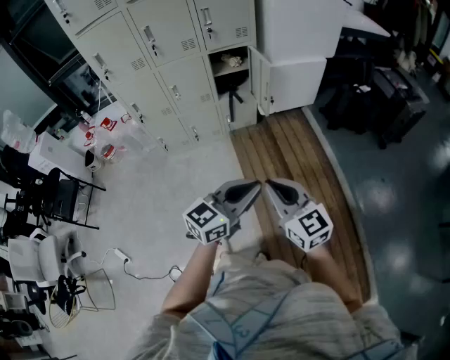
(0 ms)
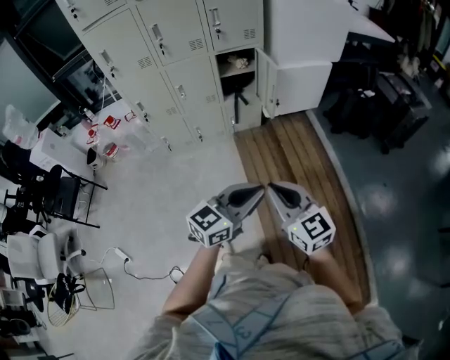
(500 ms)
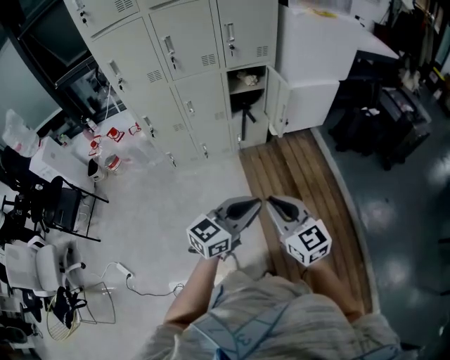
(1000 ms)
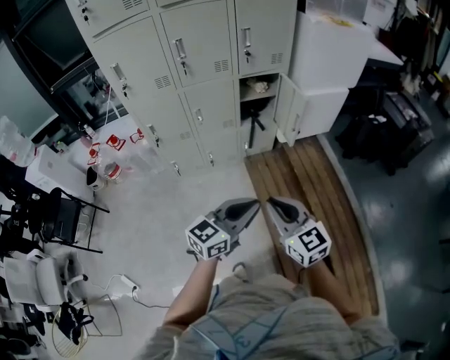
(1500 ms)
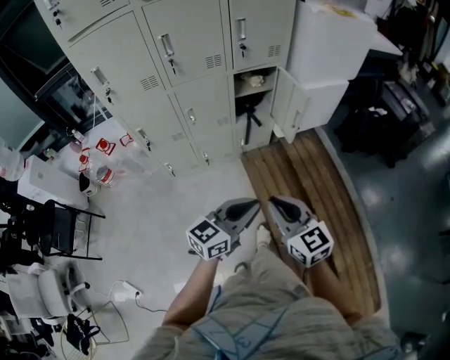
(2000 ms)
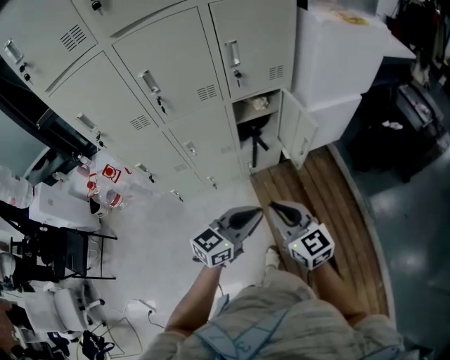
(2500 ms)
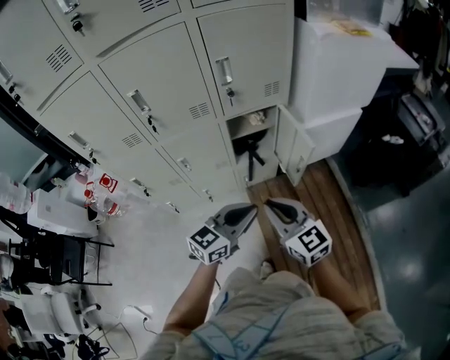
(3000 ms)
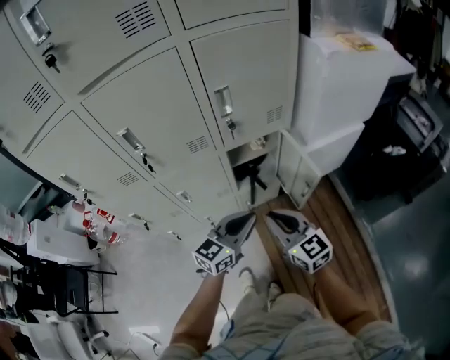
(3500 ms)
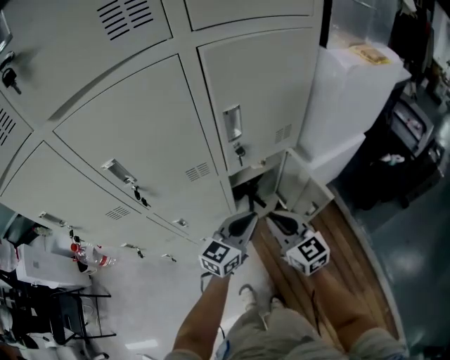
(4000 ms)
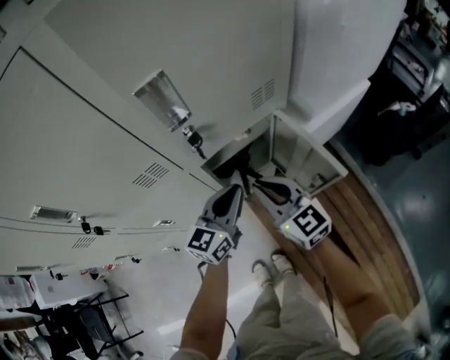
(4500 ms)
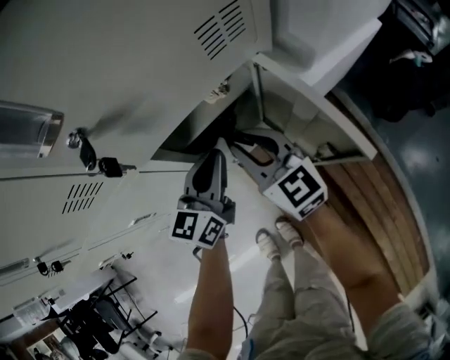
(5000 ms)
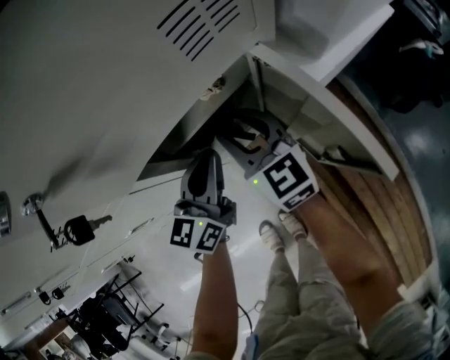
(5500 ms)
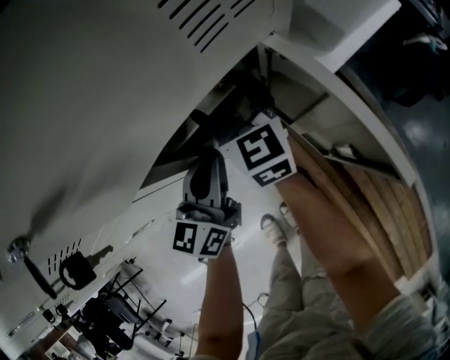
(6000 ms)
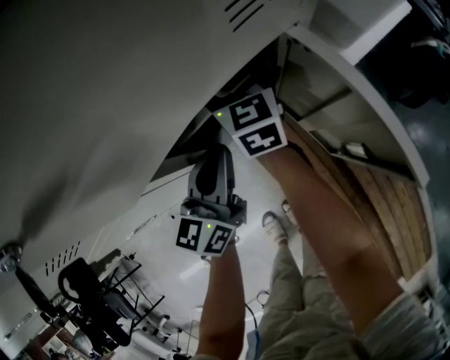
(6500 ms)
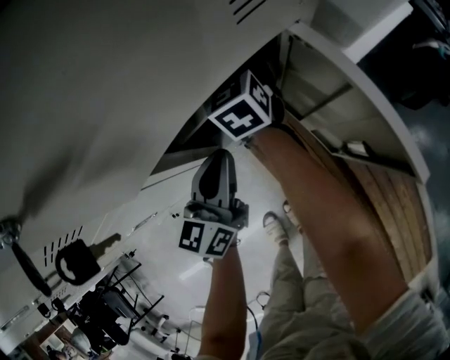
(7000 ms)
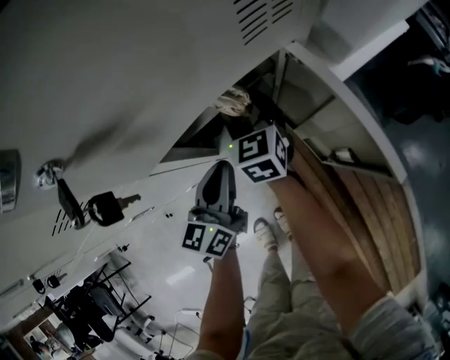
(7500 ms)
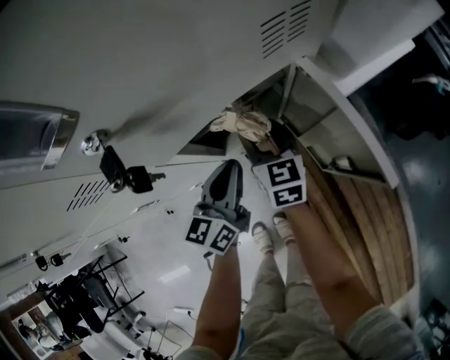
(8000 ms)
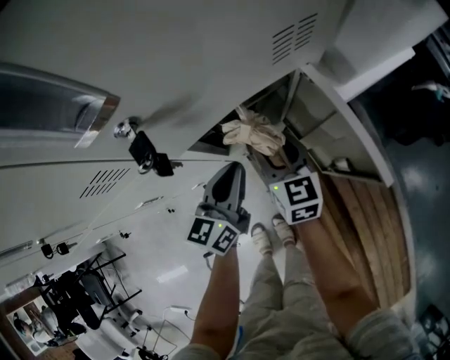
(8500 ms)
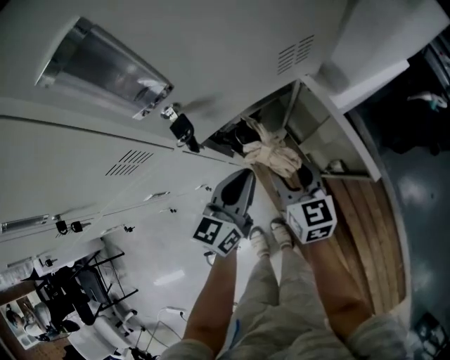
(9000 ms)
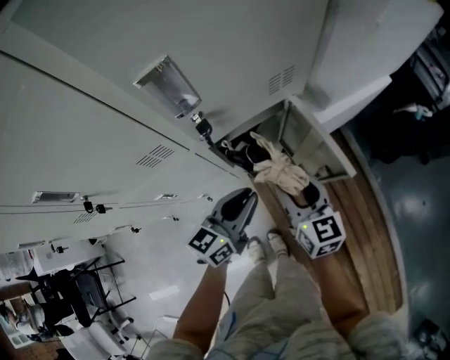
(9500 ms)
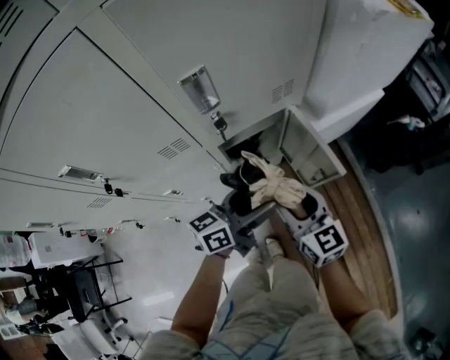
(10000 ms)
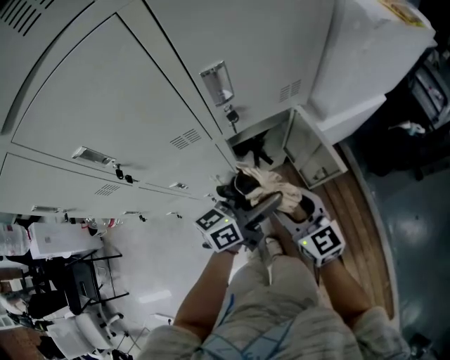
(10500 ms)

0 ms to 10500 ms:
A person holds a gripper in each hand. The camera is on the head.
0 ms to 2000 ms: Both grippers move to the left and forward, about 25 cm.
2000 ms to 4000 ms: The pair of grippers is taken forward, roughly 40 cm.
4000 ms to 6500 ms: The right gripper heads forward and downward, covering approximately 40 cm, swivels roughly 20 degrees, and opens. The left gripper goes approximately 25 cm downward and forward, and changes its angle by roughly 20 degrees.
6500 ms to 8500 ms: The left gripper moves backward, roughly 5 cm, while the right gripper is displaced backward by roughly 15 cm, and closes.
8500 ms to 10500 ms: Both grippers travel together upward and backward, some 25 cm. The right gripper changes its angle by some 20 degrees, while the left gripper changes its angle by approximately 30 degrees, and opens.

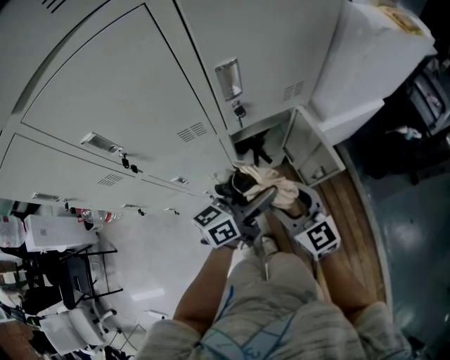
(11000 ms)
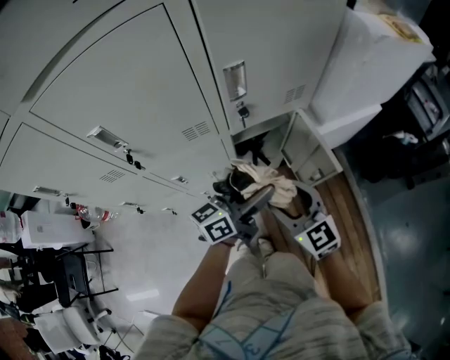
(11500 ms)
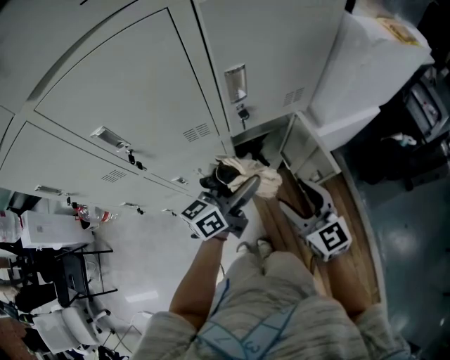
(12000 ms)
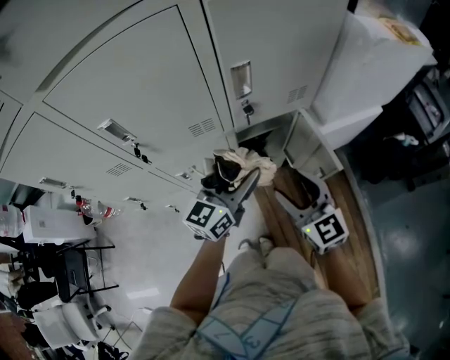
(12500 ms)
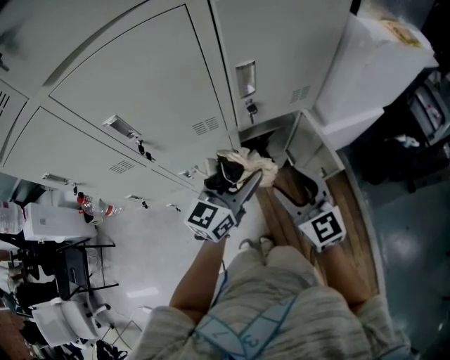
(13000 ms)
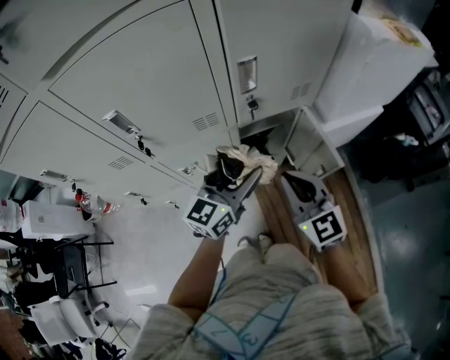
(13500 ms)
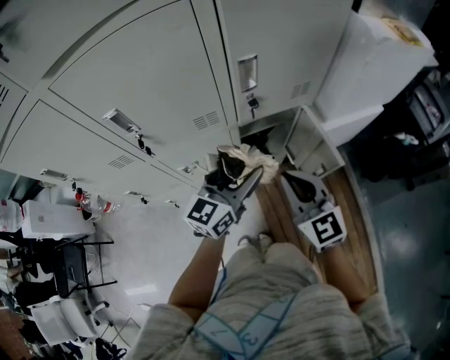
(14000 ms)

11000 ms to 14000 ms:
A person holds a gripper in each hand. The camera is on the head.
11000 ms to 12500 ms: The left gripper moves to the left, approximately 5 cm, and changes its angle by about 30 degrees; the right gripper travels upward by about 5 cm.
12500 ms to 14000 ms: The right gripper closes.

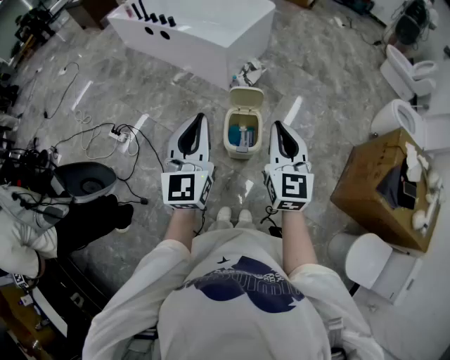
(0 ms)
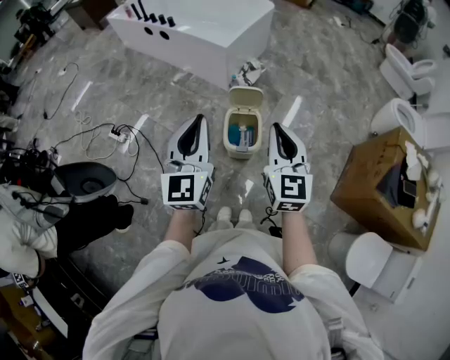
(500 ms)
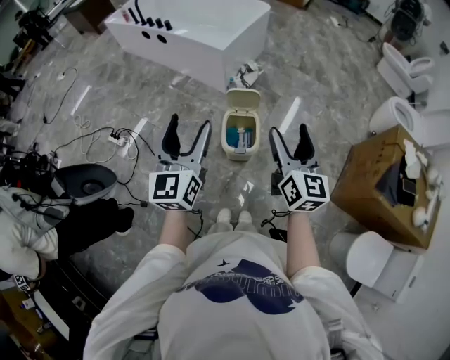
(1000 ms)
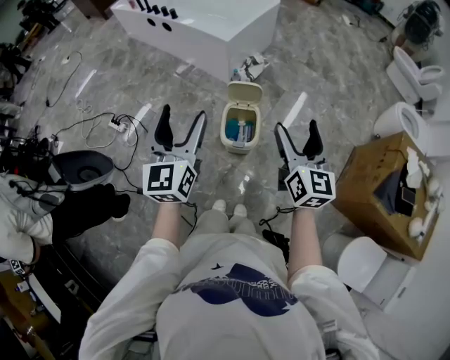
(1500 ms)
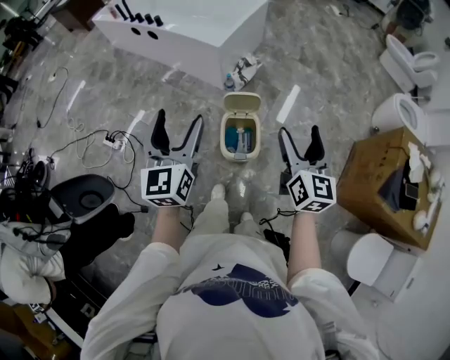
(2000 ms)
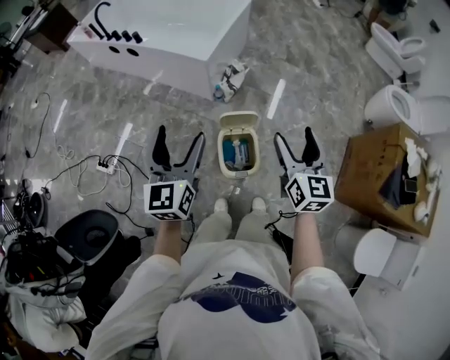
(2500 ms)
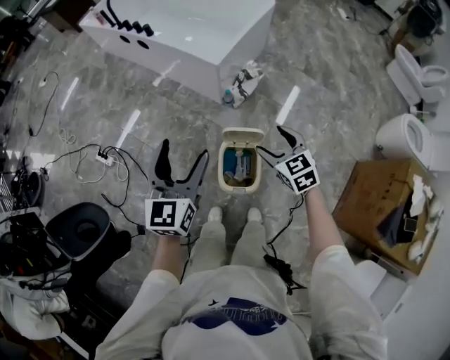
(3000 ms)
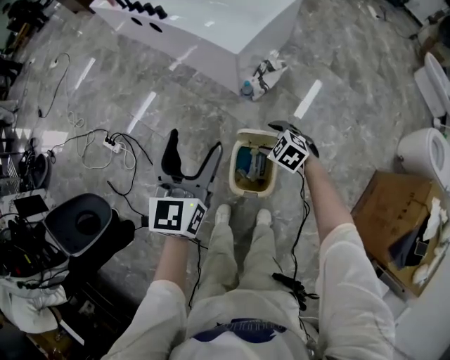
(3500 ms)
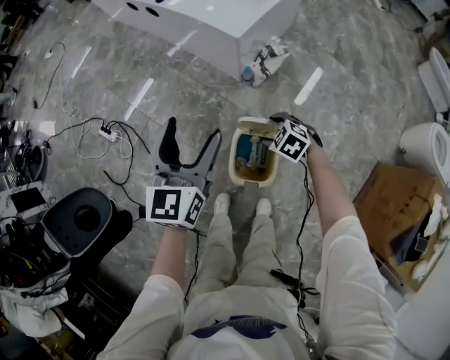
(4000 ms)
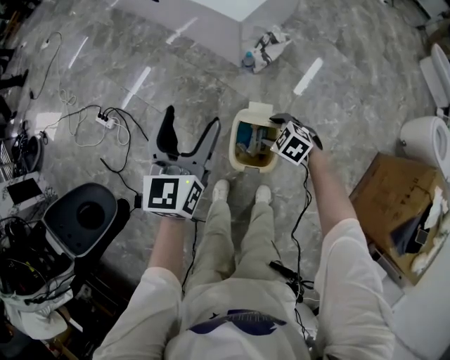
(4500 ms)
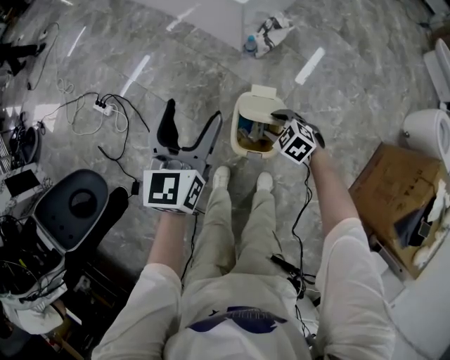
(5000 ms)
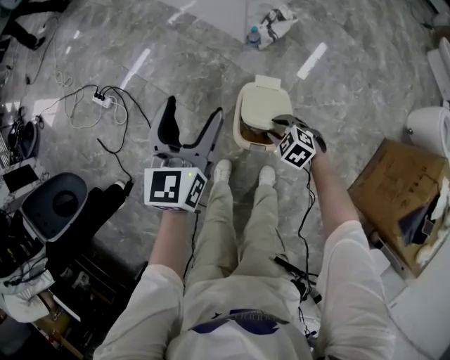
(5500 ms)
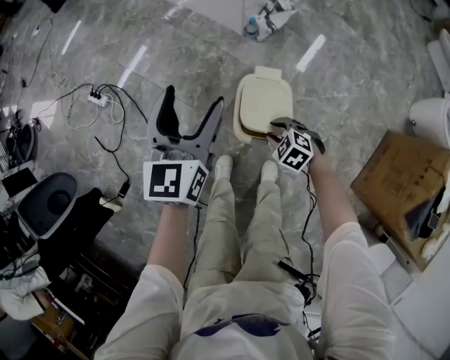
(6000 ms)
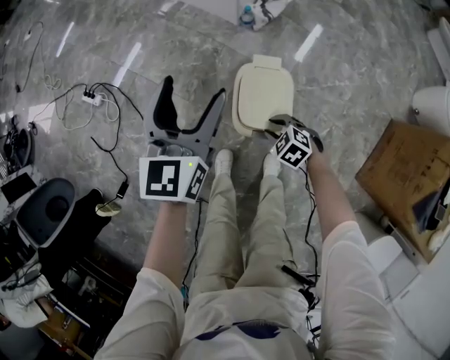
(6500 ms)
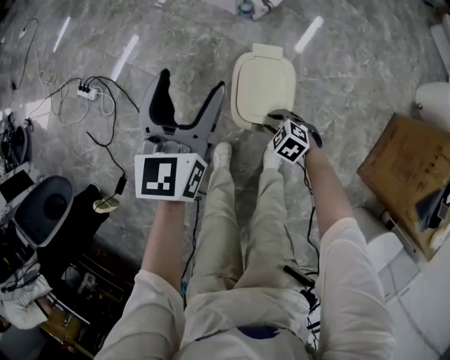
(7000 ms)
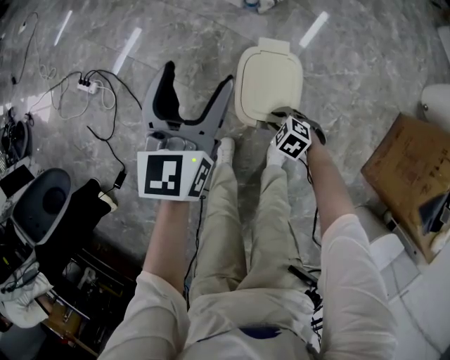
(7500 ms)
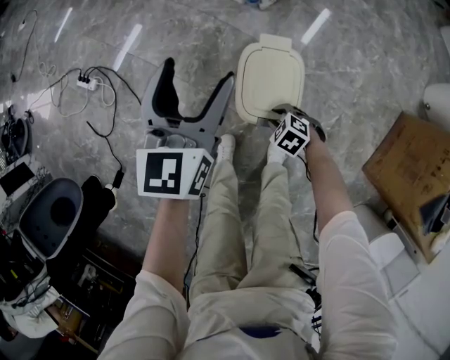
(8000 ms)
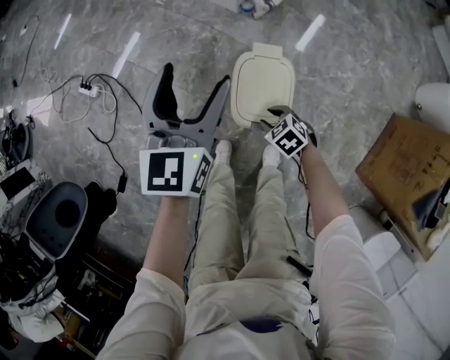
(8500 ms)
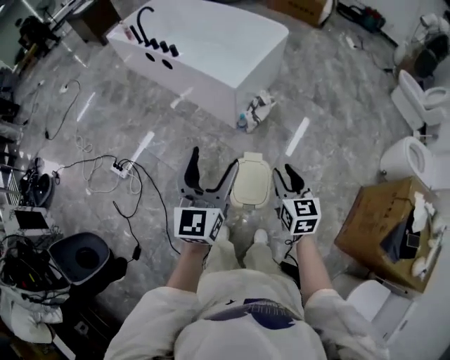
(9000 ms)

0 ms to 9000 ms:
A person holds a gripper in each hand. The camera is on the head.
0 ms to 2000 ms: The right gripper shifts approximately 10 cm forward and to the right, and opens its fingers, while the left gripper moves forward, roughly 10 cm, and opens its fingers.
2000 ms to 4500 ms: The right gripper moves downward, approximately 40 cm, and points its fingers some 60 degrees further downward; the left gripper changes place by approximately 25 cm.
4500 ms to 7000 ms: The left gripper moves downward and backward, approximately 15 cm, while the right gripper is displaced downward, backward and to the left by approximately 20 cm, and closes its fingers.
7000 ms to 9000 ms: The left gripper shifts some 25 cm upward, while the right gripper travels upward by some 50 cm, and points its fingers roughly 40 degrees further upward.

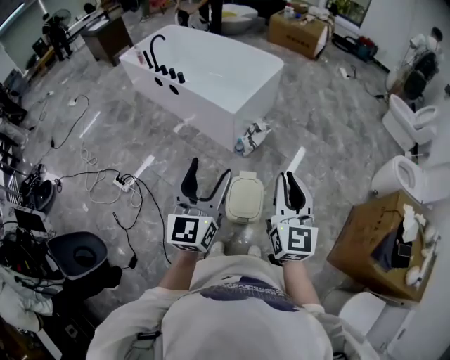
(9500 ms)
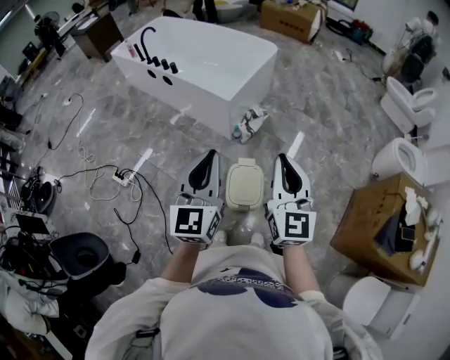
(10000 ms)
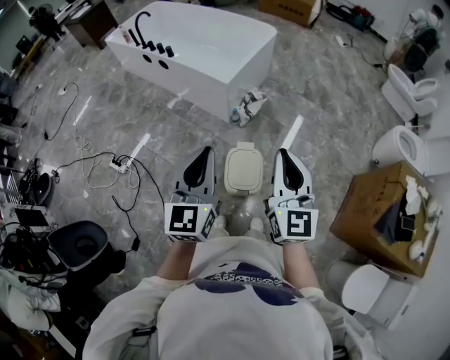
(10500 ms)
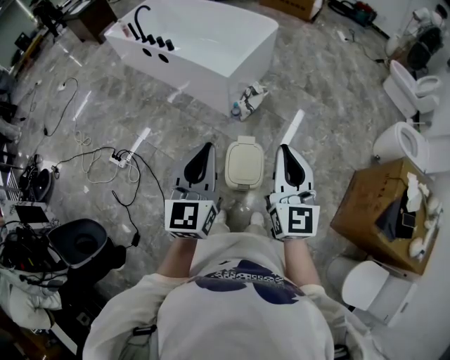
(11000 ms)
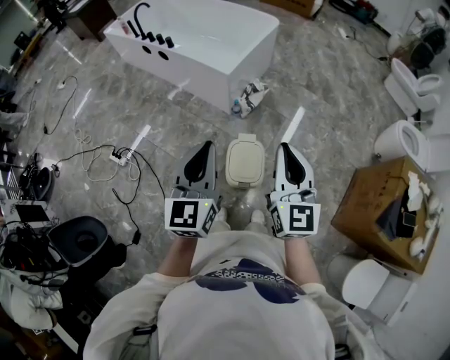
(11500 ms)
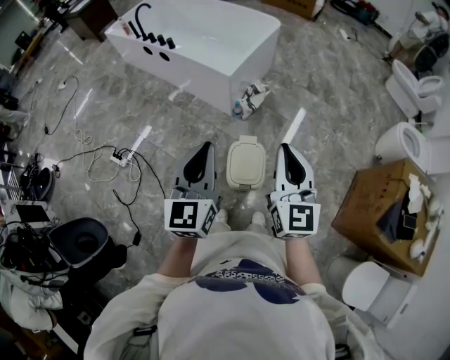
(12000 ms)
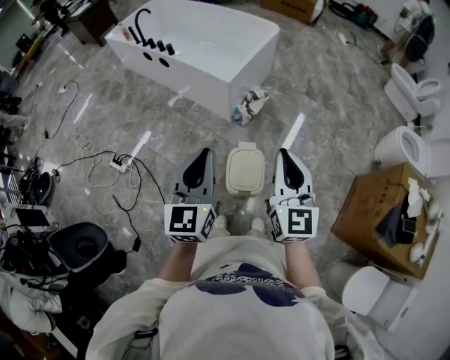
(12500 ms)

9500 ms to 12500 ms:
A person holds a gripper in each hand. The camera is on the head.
9500 ms to 11000 ms: The left gripper closes.
11000 ms to 12500 ms: The grippers move only a little.

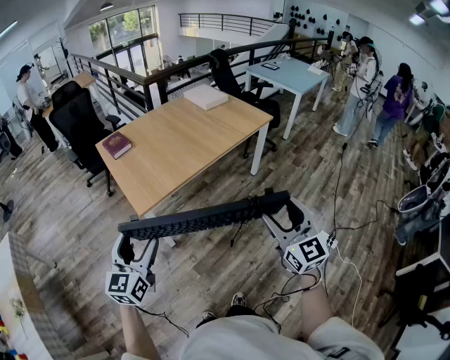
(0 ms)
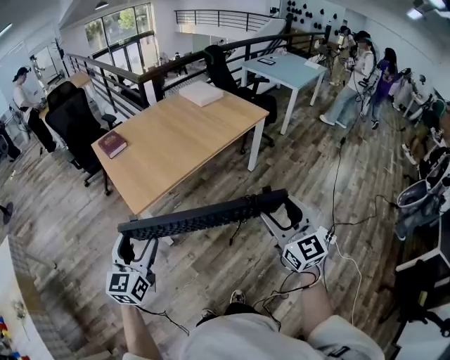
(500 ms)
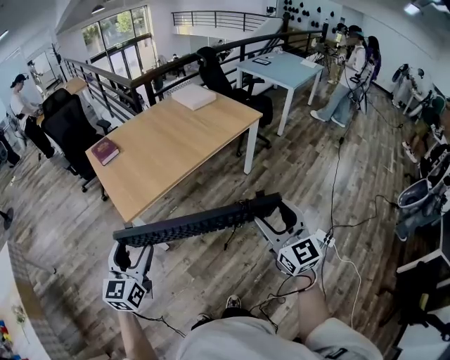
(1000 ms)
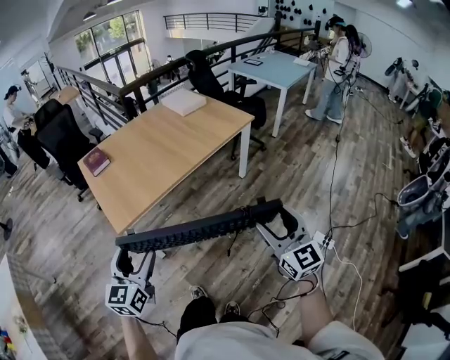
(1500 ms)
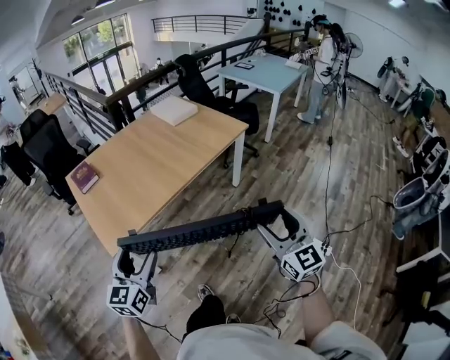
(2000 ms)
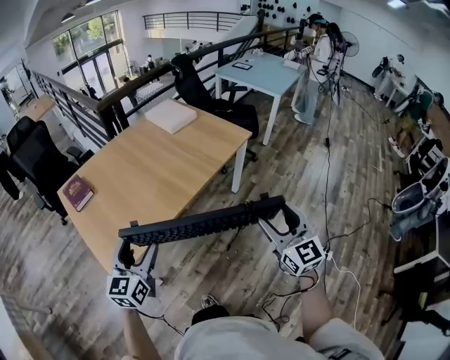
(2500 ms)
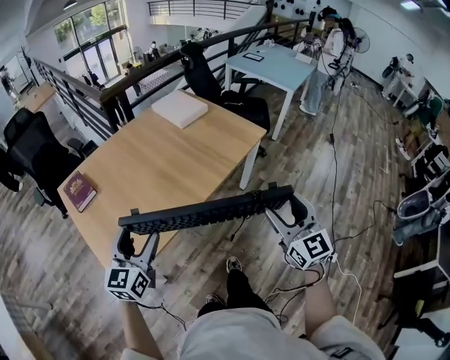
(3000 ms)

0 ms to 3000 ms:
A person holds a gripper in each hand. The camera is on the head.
0 ms to 1500 ms: The two grippers go roughly 10 cm to the right.
1500 ms to 3000 ms: The grippers both shift forward by approximately 30 cm.
